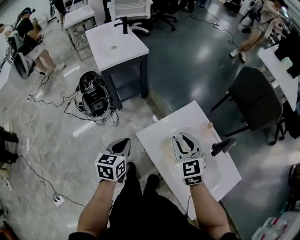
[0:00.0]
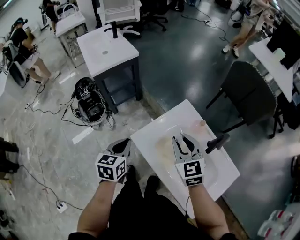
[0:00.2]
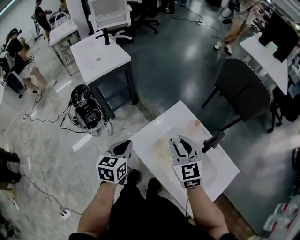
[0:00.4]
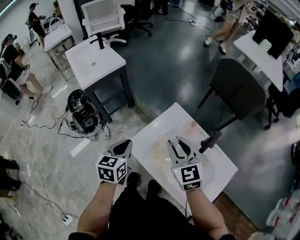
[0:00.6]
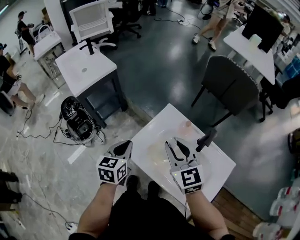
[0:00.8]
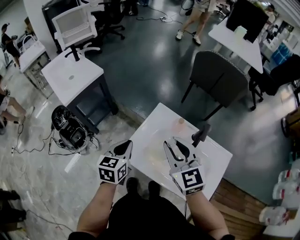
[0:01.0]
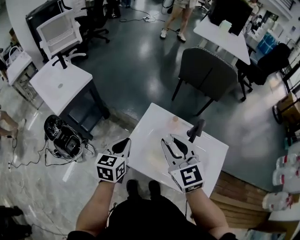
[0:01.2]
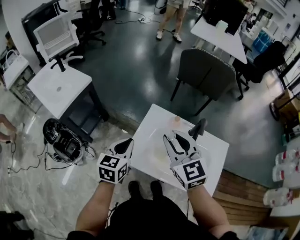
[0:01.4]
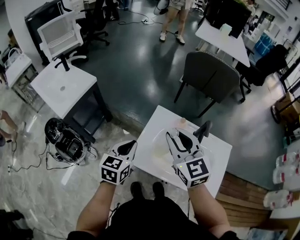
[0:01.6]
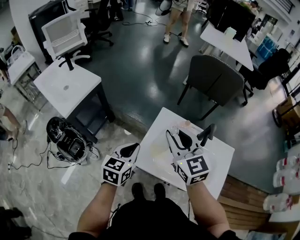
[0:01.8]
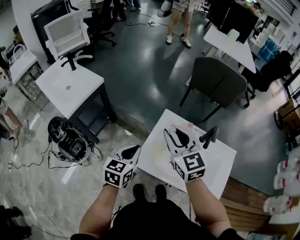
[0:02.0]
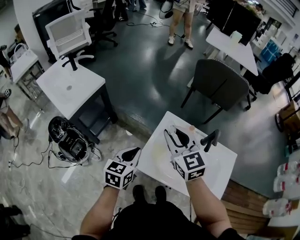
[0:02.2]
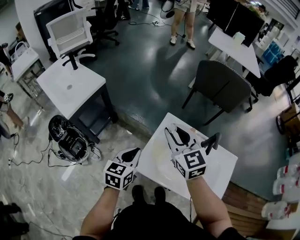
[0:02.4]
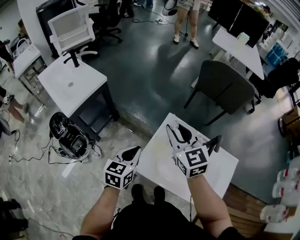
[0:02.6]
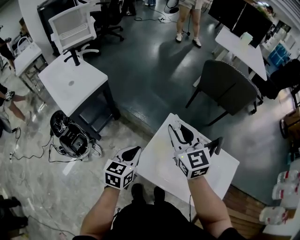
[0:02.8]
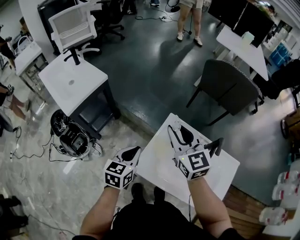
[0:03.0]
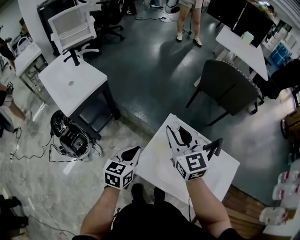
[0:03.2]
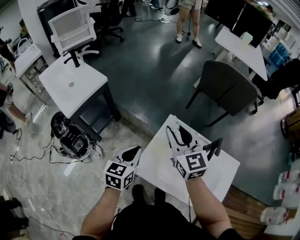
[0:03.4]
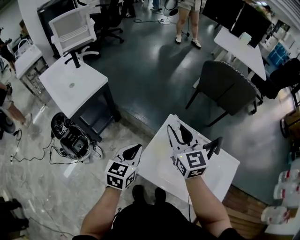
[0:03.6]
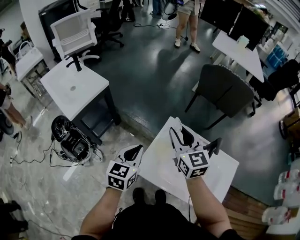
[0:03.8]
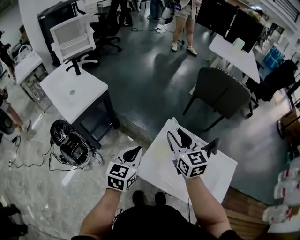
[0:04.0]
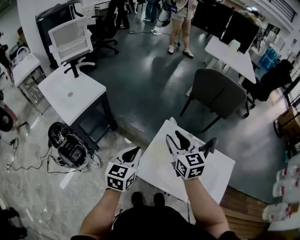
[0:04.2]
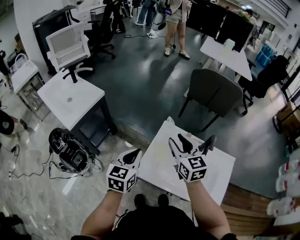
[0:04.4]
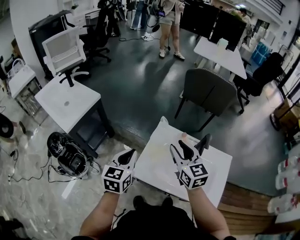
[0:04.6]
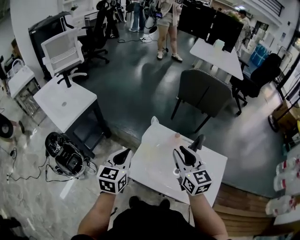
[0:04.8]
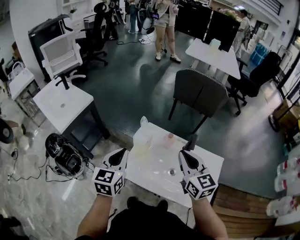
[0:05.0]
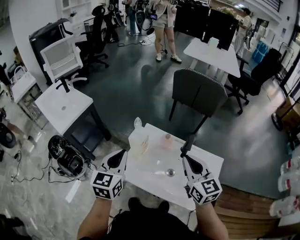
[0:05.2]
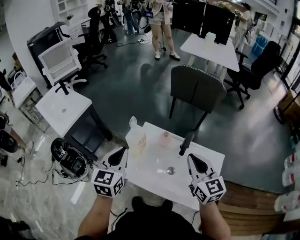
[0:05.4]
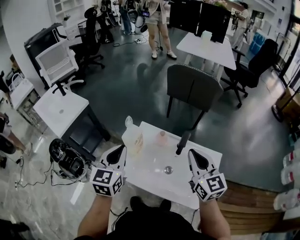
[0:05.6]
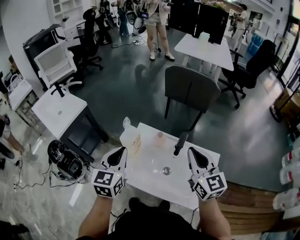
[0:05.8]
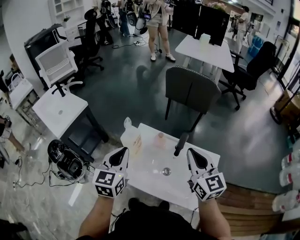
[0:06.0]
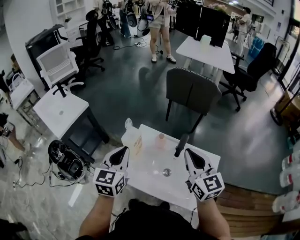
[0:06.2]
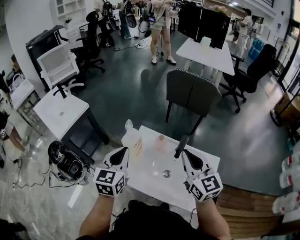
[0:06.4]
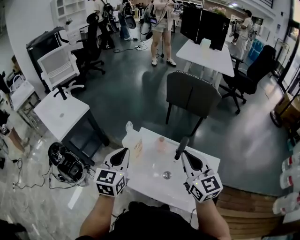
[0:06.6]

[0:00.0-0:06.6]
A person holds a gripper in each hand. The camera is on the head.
0:00.0 to 0:01.6: The left gripper changes place by some 15 cm, and changes its angle by about 40 degrees, while the right gripper heads upward, covering some 15 cm, and swivels about 30 degrees.
0:01.6 to 0:03.2: The left gripper moves approximately 5 cm. The right gripper moves forward, some 10 cm.
0:03.2 to 0:05.0: The right gripper heads to the right and backward, covering approximately 20 cm, and closes its fingers, while the left gripper travels upward and backward by approximately 15 cm.
0:05.0 to 0:06.6: Both grippers move to the right, roughly 5 cm.

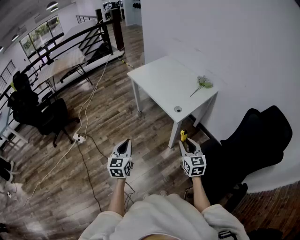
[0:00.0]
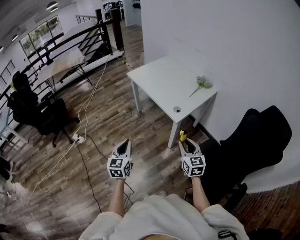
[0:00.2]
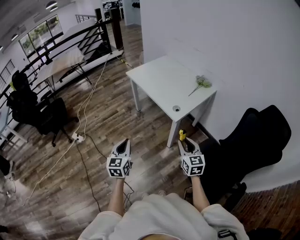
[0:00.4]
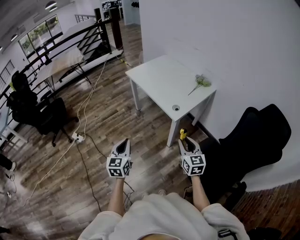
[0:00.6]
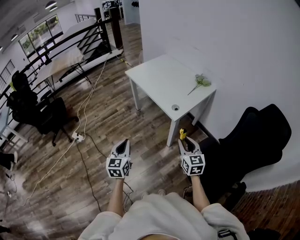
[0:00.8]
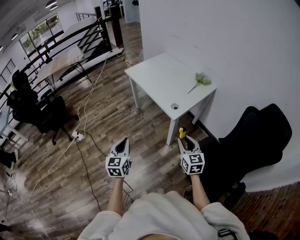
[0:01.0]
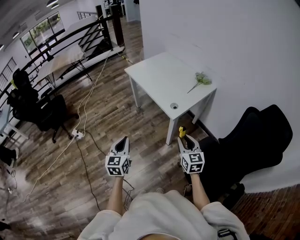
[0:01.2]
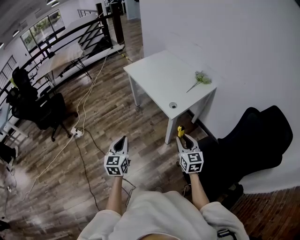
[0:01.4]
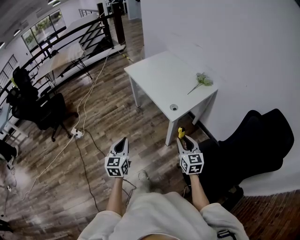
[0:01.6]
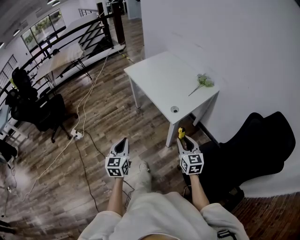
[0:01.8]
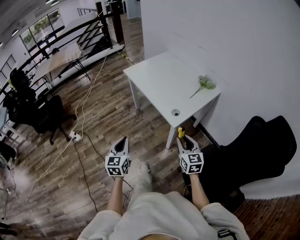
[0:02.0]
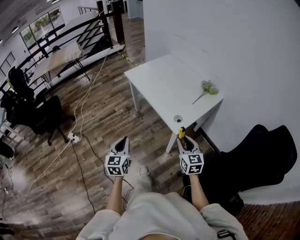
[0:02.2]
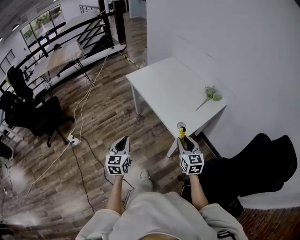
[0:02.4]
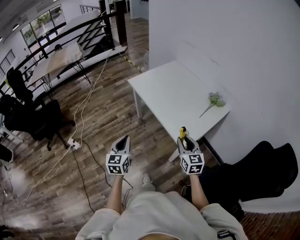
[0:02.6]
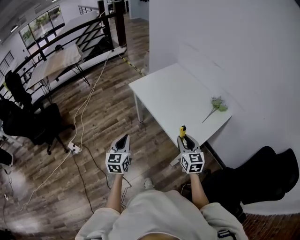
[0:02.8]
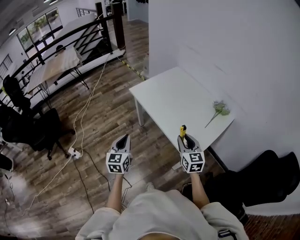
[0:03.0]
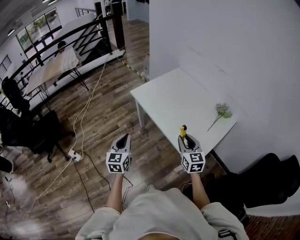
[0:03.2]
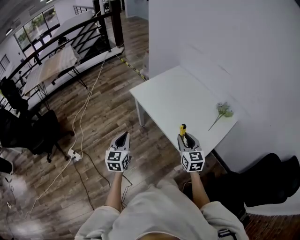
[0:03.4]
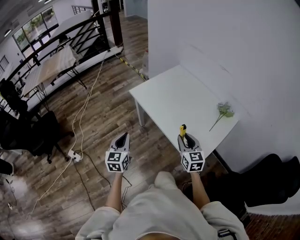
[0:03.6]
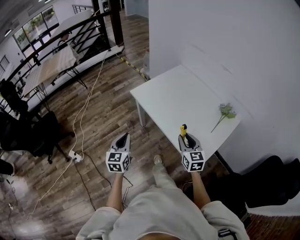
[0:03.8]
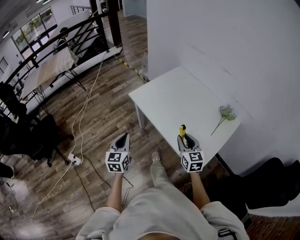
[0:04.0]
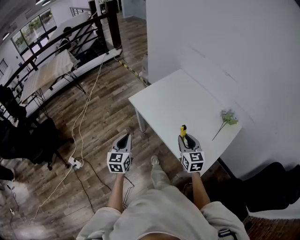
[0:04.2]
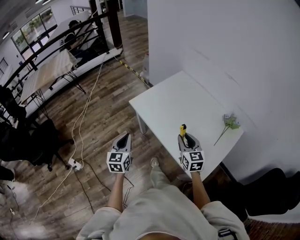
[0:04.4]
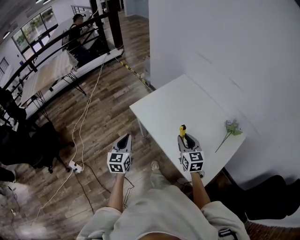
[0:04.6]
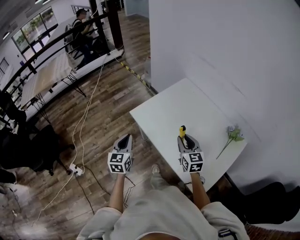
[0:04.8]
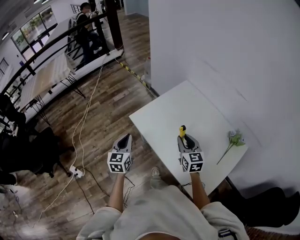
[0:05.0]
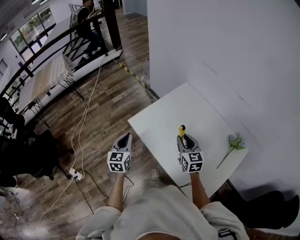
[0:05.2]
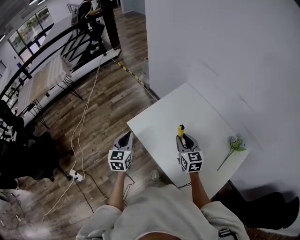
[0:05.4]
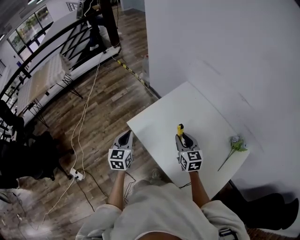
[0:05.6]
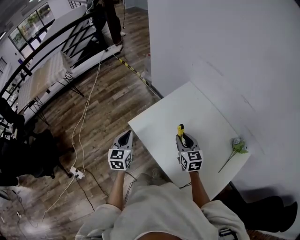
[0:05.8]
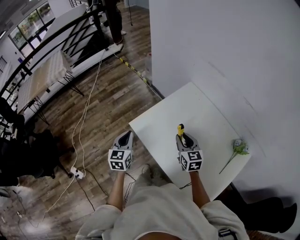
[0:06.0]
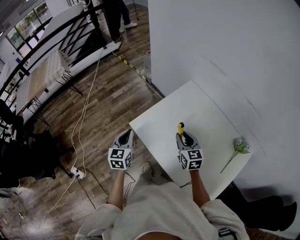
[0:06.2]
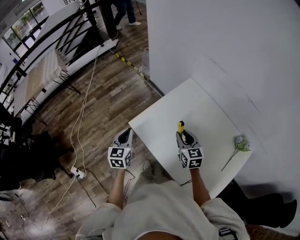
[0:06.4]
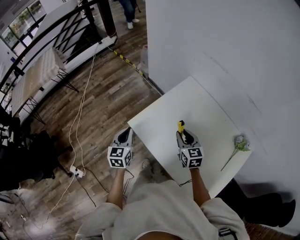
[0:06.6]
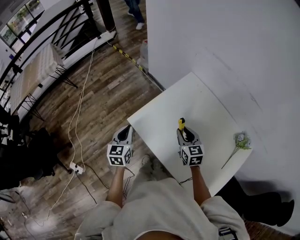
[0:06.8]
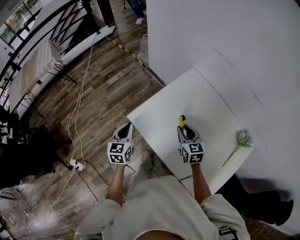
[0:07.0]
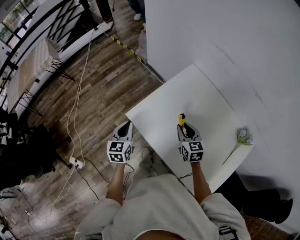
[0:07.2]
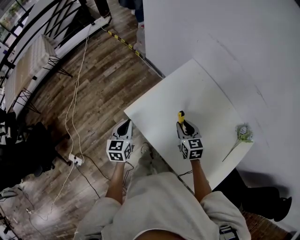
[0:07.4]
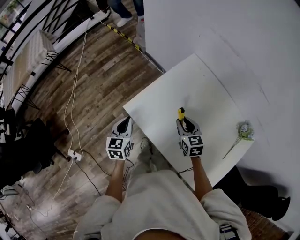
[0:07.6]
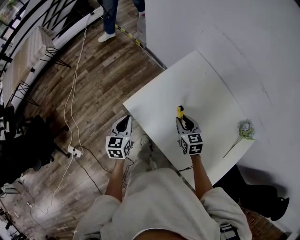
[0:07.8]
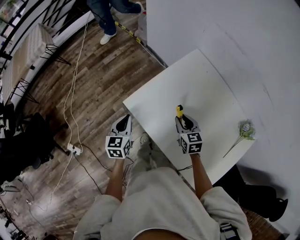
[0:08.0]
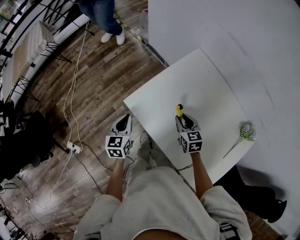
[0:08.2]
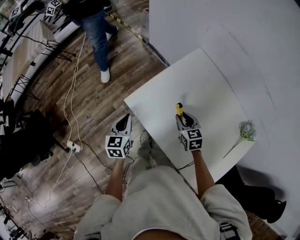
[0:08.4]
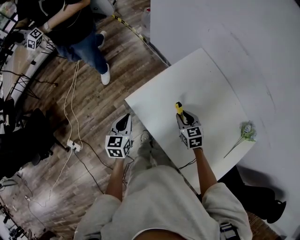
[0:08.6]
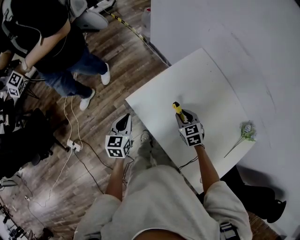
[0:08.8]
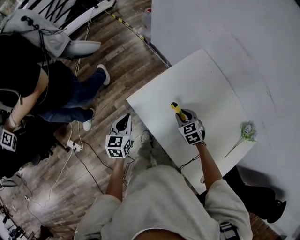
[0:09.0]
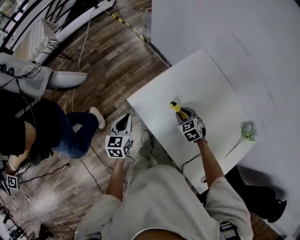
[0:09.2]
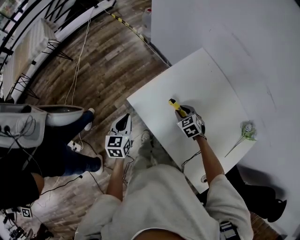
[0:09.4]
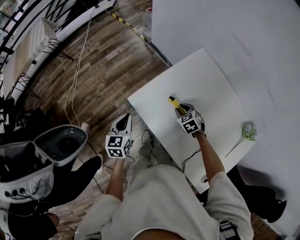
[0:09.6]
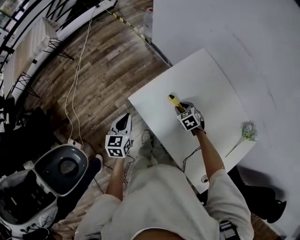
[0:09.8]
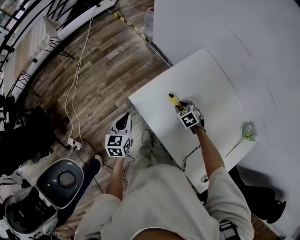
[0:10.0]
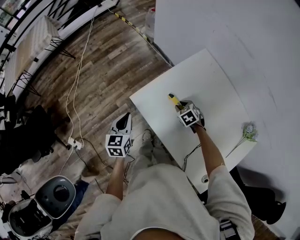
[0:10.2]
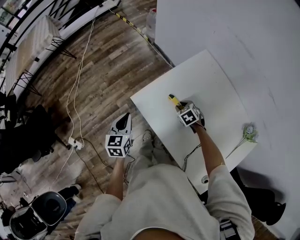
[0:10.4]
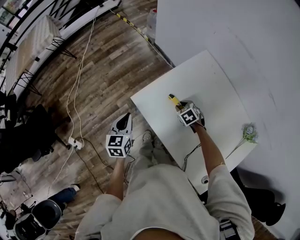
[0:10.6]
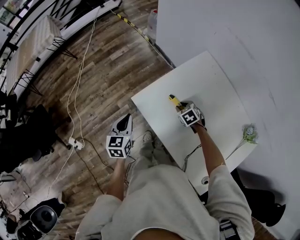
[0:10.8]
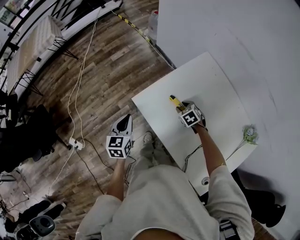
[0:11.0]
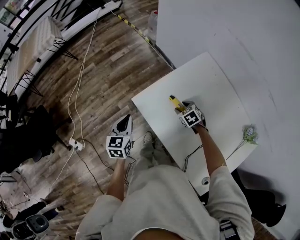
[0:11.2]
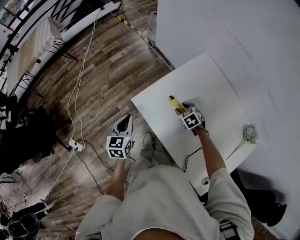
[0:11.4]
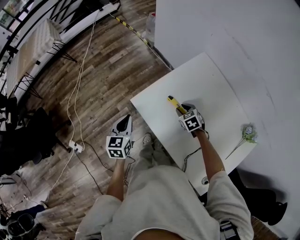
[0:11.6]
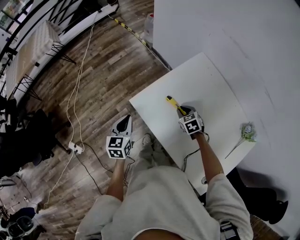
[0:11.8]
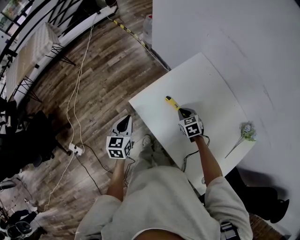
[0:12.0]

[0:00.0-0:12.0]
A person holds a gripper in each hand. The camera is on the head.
0:00.0 to 0:01.6: The left gripper ends up some 5 cm from where it was. The right gripper changes place by some 5 cm.
0:01.6 to 0:03.0: Both grippers travel together forward, roughly 35 cm.
0:03.0 to 0:04.4: Both grippers move forward, about 20 cm.
0:04.4 to 0:06.0: The two grippers go roughly 25 cm forward.
0:06.0 to 0:07.6: The two grippers go about 10 cm downward and forward.
0:07.6 to 0:09.0: The right gripper moves downward, roughly 5 cm, and swivels some 30 degrees.
0:09.0 to 0:10.4: The right gripper shifts some 5 cm downward.
0:10.4 to 0:12.0: The right gripper moves upward, about 5 cm, and closes.

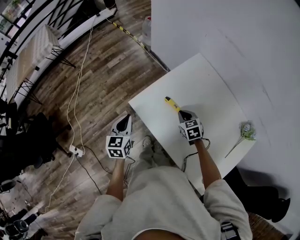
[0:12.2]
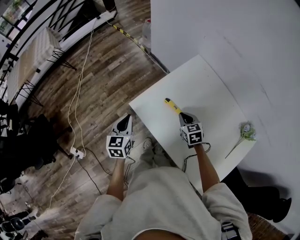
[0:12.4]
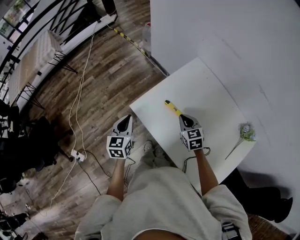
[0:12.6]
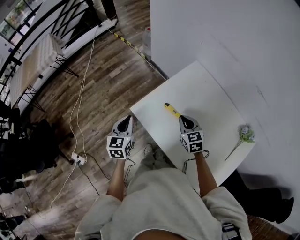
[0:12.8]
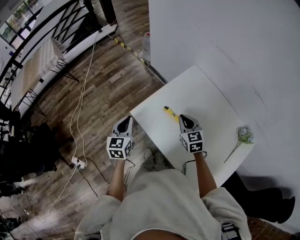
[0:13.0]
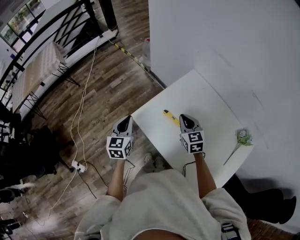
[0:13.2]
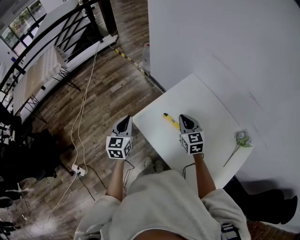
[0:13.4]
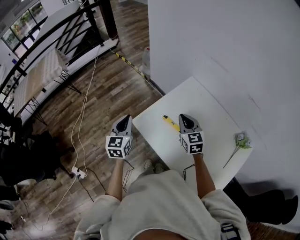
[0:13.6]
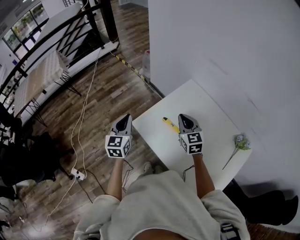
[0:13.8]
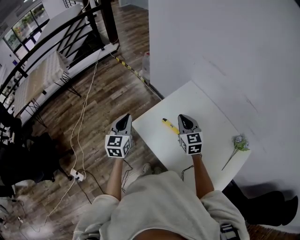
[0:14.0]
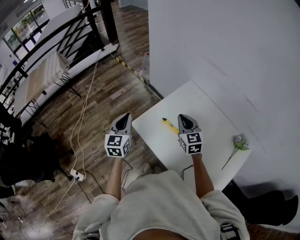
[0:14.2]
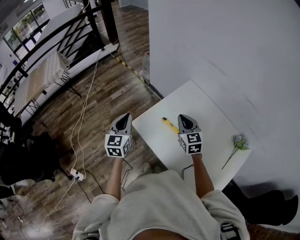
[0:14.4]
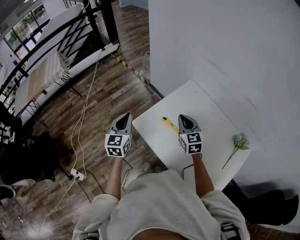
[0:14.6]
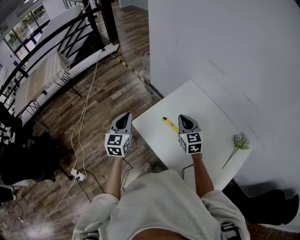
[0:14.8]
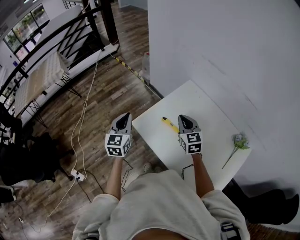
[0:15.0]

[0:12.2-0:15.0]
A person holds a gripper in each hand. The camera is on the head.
0:12.2 to 0:13.6: The right gripper heads upward, covering about 20 cm, and changes its angle by roughly 30 degrees. Meanwhile the left gripper moves upward, some 10 cm.
0:13.6 to 0:15.0: There are only small adjustments of the grippers.

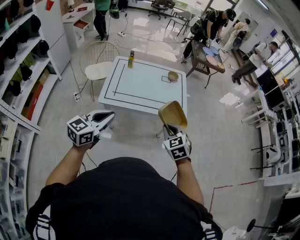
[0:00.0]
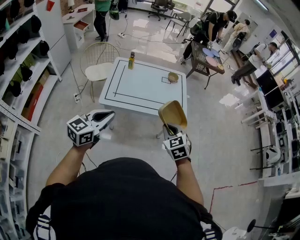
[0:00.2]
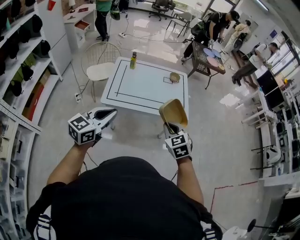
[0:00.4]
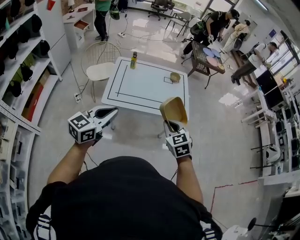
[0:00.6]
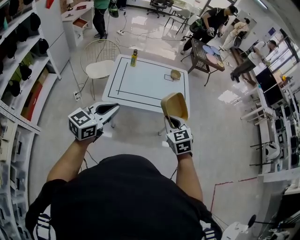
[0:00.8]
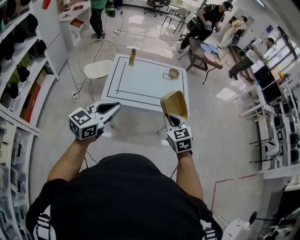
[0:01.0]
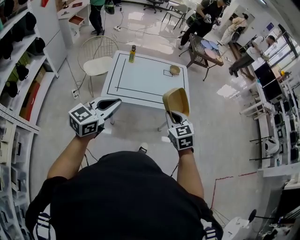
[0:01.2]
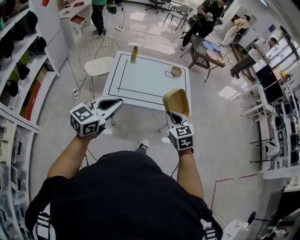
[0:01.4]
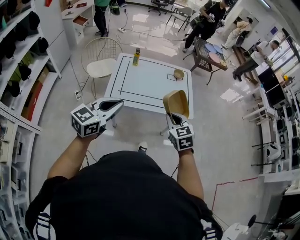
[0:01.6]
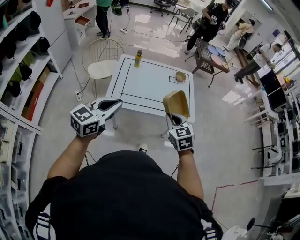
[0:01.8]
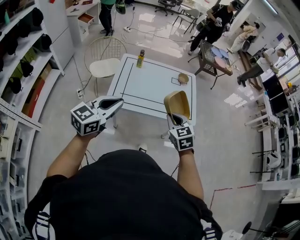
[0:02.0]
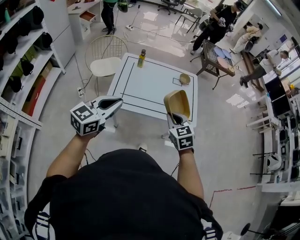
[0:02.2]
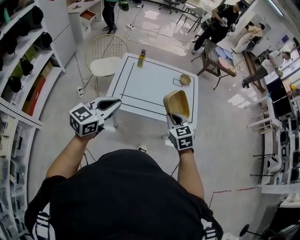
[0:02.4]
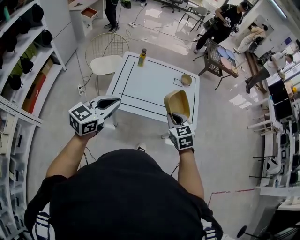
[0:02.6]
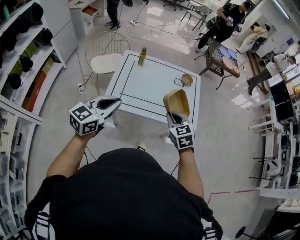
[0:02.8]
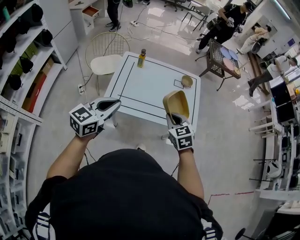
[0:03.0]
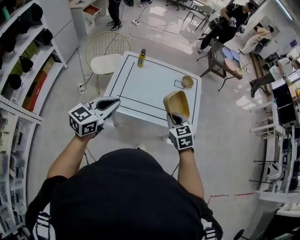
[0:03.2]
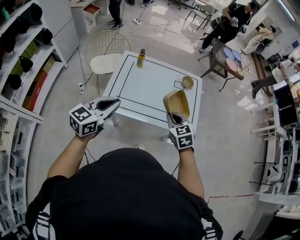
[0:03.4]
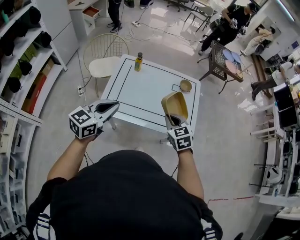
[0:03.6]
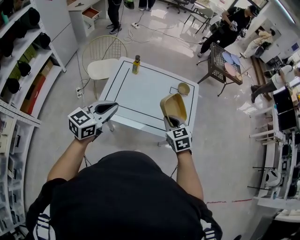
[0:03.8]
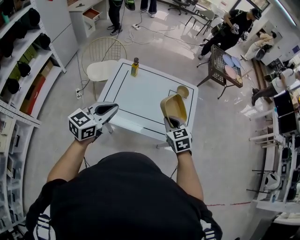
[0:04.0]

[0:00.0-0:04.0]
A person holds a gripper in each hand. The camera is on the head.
0:00.0 to 0:01.4: The right gripper moves to the left, approximately 5 cm.
0:01.4 to 0:02.6: The grippers both shift forward by about 10 cm.
0:02.6 to 0:04.0: The right gripper shifts roughly 15 cm forward. Meanwhile the left gripper shifts some 15 cm forward and to the right.
